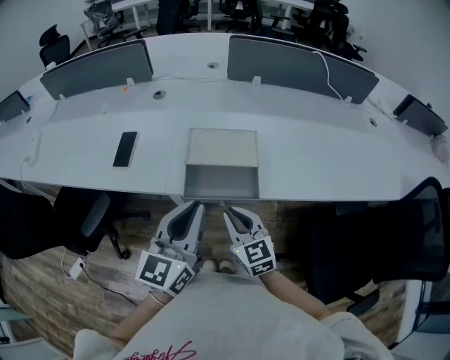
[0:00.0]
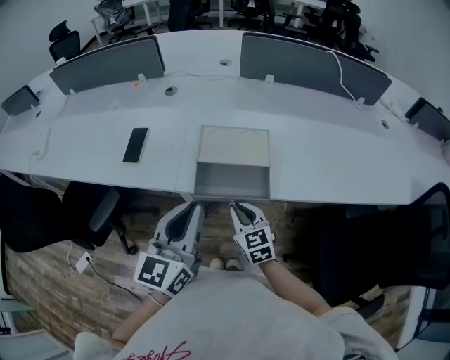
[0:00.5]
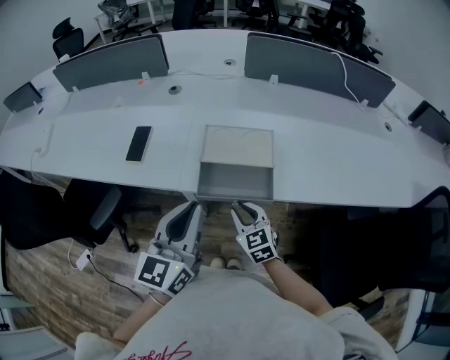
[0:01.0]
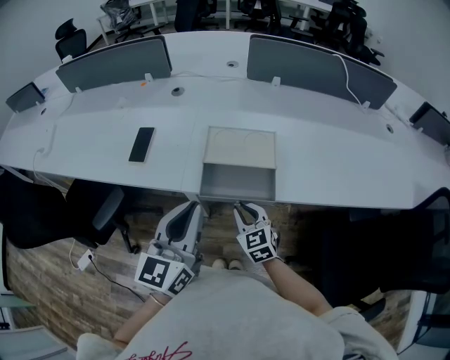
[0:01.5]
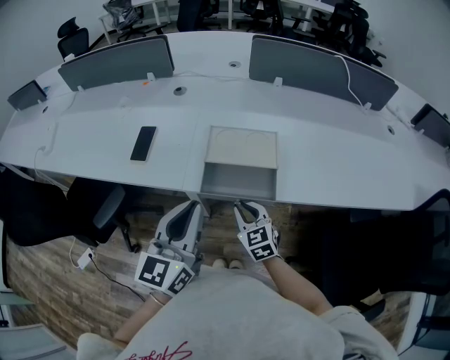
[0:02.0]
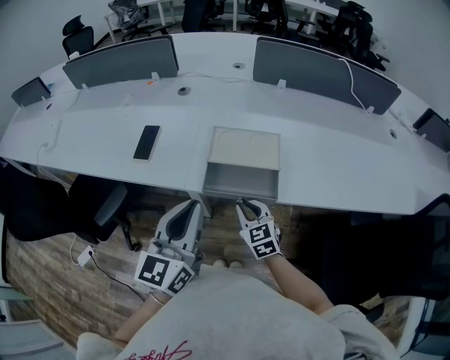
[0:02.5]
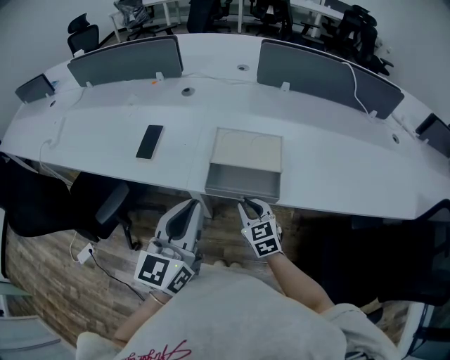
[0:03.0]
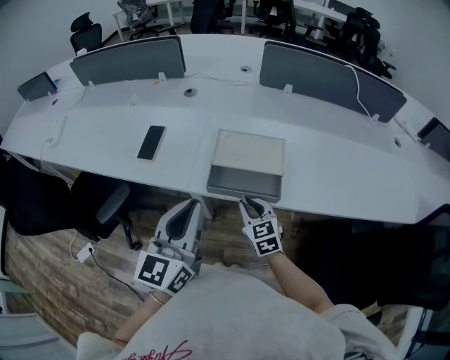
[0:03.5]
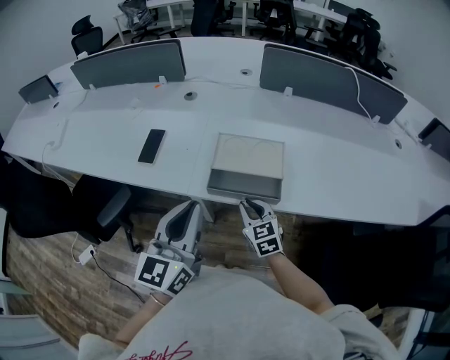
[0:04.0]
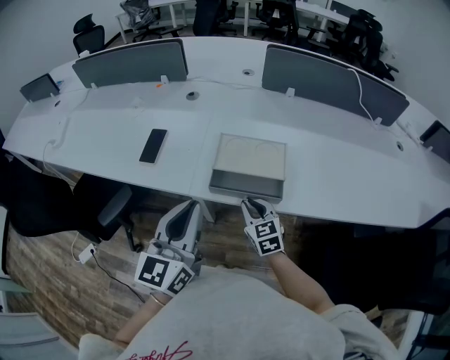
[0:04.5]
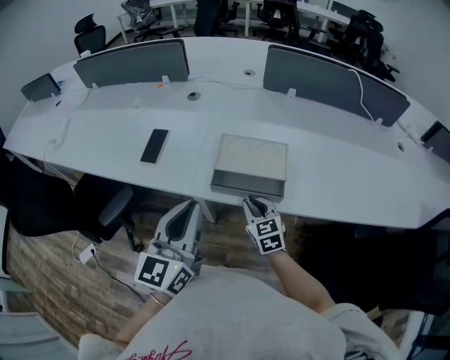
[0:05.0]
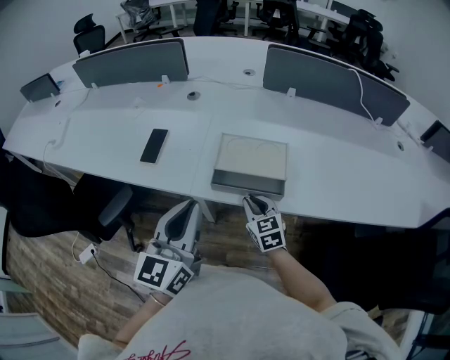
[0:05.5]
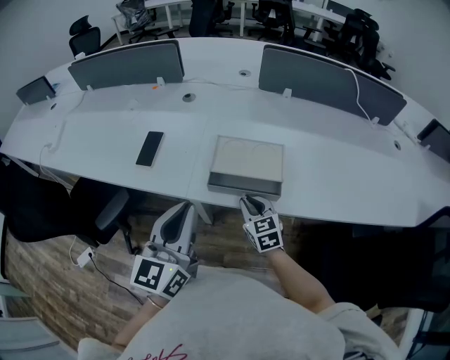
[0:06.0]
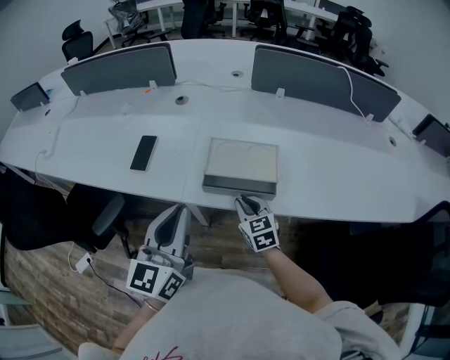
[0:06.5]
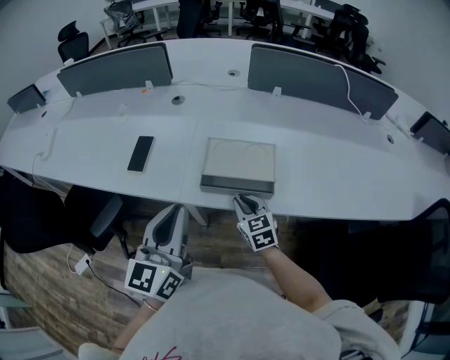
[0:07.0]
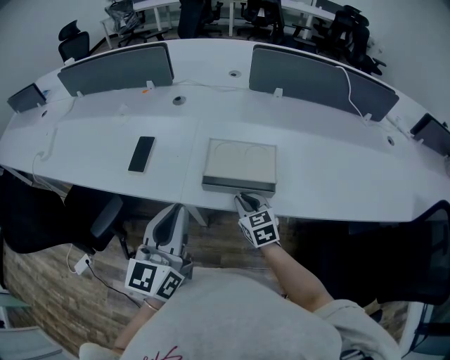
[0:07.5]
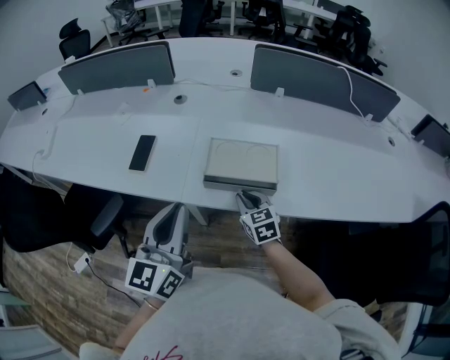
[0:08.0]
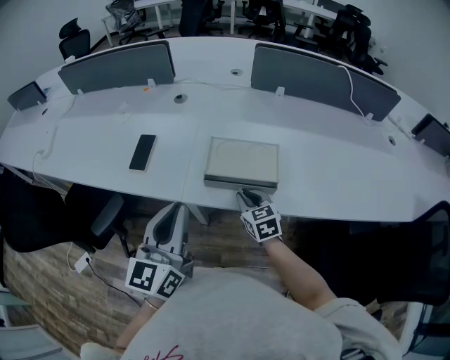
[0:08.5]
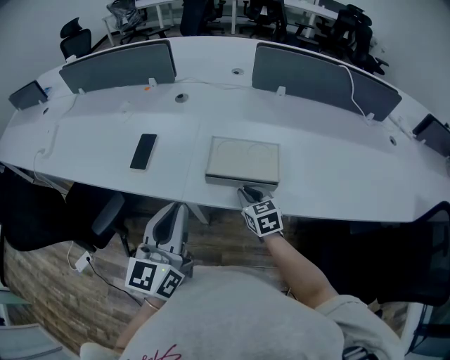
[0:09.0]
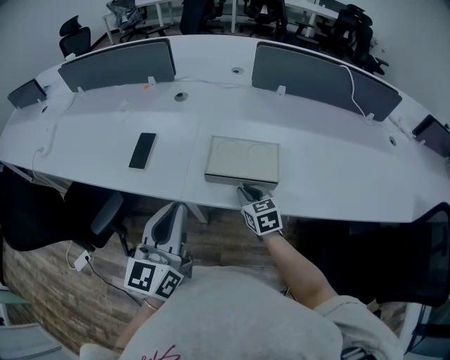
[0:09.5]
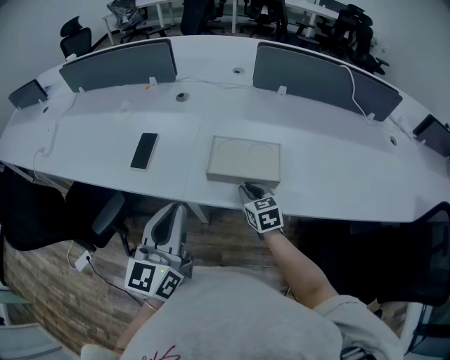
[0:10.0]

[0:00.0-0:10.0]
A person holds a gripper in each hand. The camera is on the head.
0:00.0 to 0:02.0: The right gripper travels downward by approximately 5 cm.
0:02.0 to 0:06.0: The grippers make only small movements.
0:06.0 to 0:10.0: The grippers move only a little.

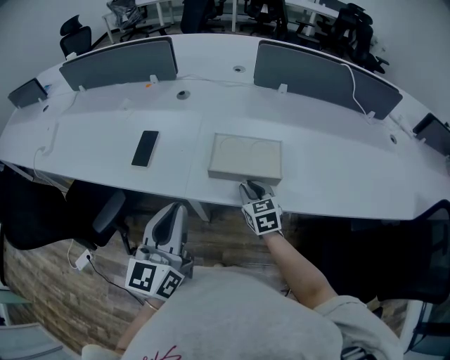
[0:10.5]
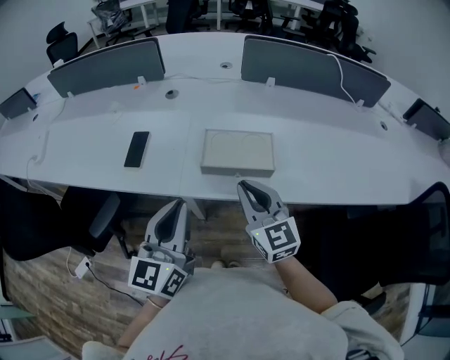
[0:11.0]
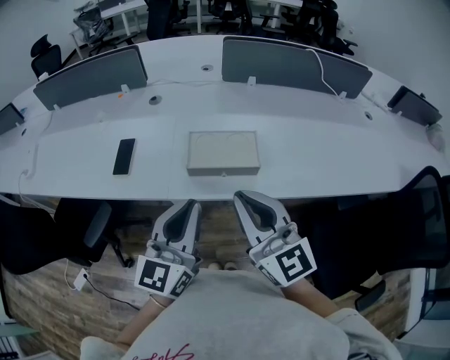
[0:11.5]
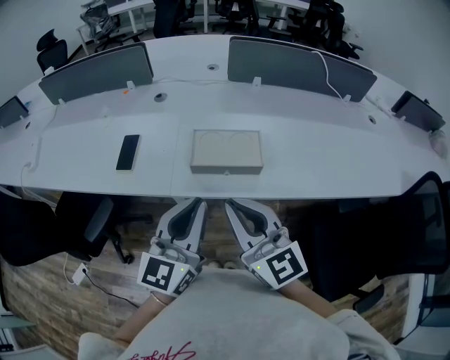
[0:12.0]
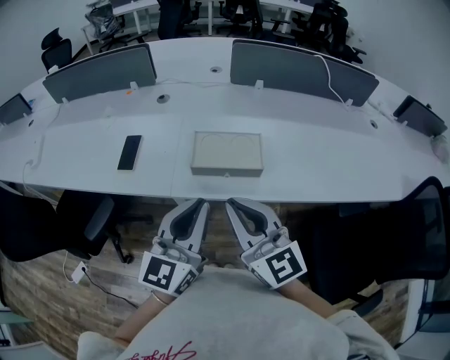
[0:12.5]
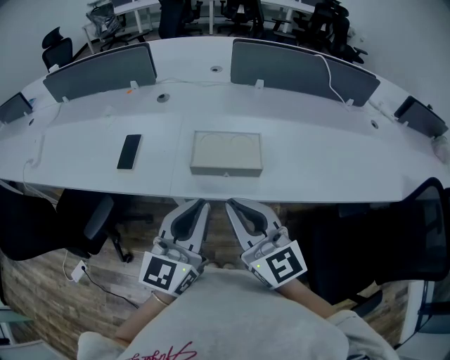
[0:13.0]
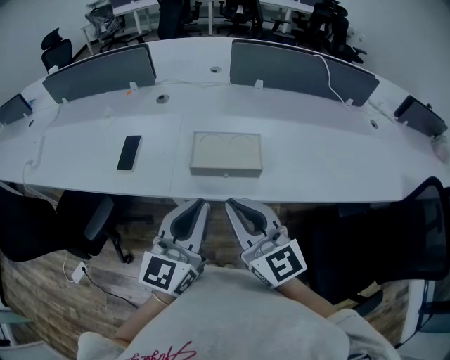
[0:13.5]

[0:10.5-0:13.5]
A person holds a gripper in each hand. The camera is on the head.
0:10.5 to 0:12.0: The right gripper heads upward and backward, covering some 25 cm, and angles its fingers upward, by some 30 degrees, while the left gripper shifts about 10 cm to the right.
0:12.0 to 0:13.5: The two grippers keep their place.

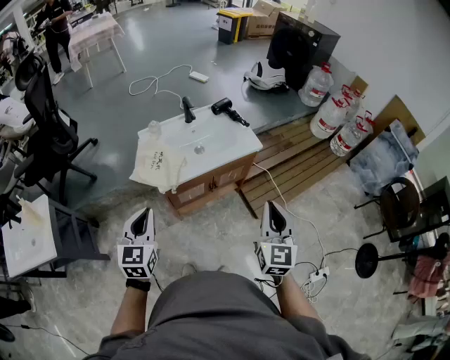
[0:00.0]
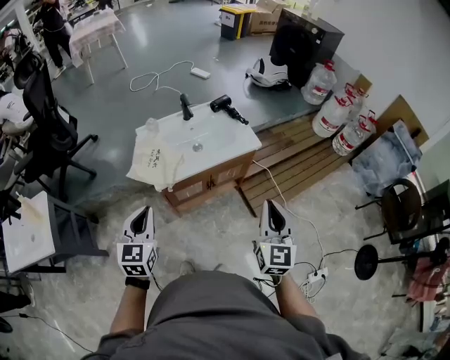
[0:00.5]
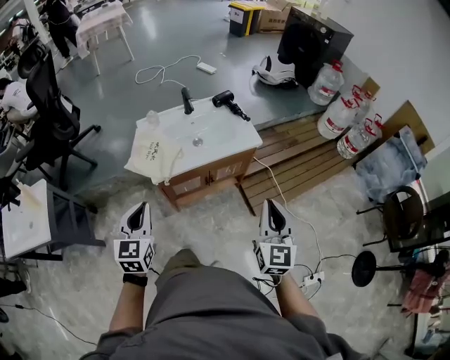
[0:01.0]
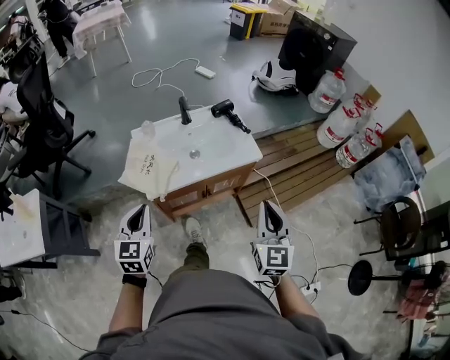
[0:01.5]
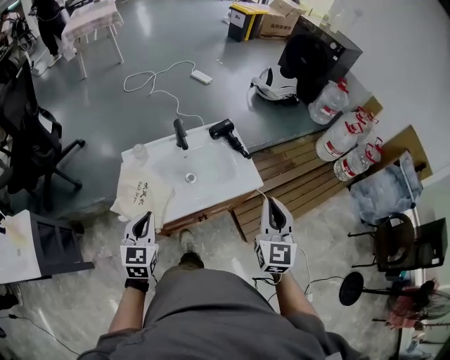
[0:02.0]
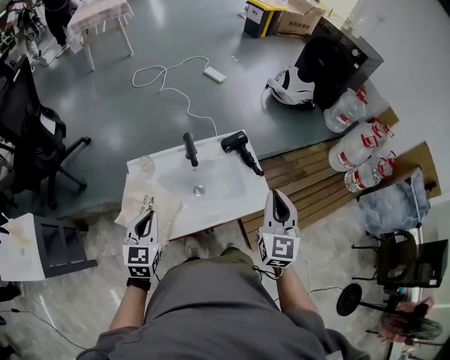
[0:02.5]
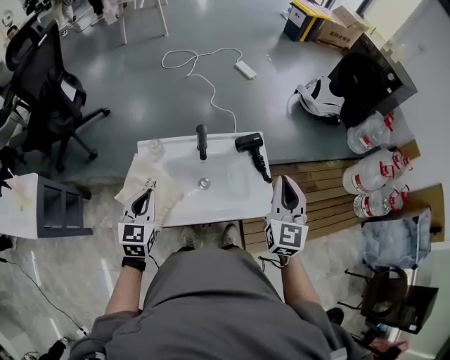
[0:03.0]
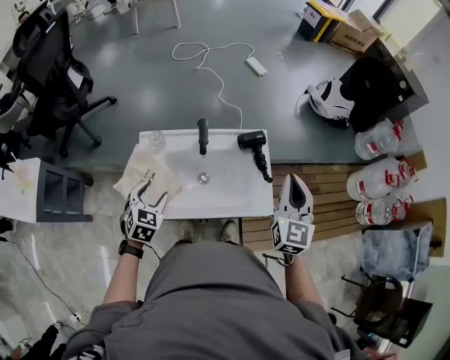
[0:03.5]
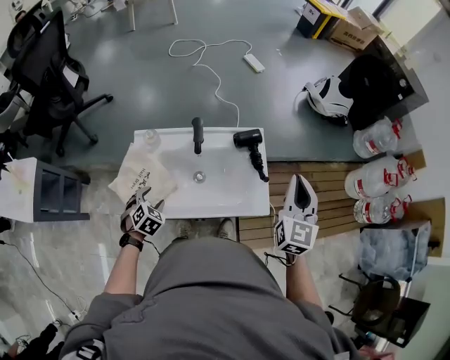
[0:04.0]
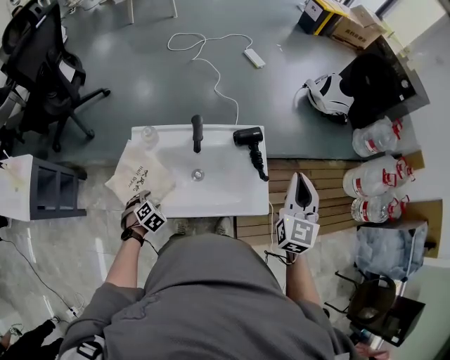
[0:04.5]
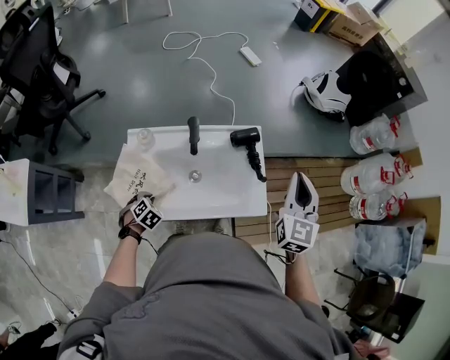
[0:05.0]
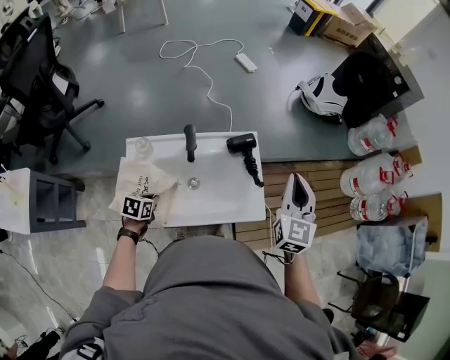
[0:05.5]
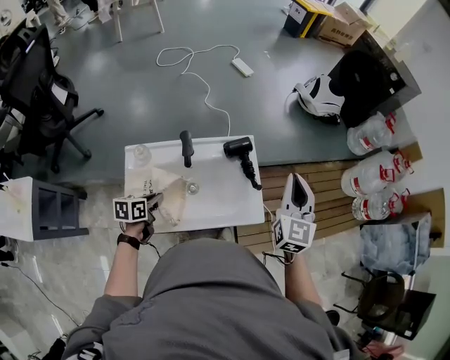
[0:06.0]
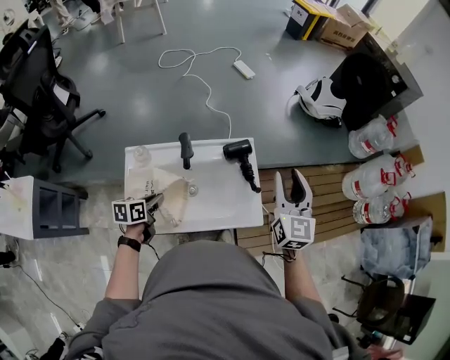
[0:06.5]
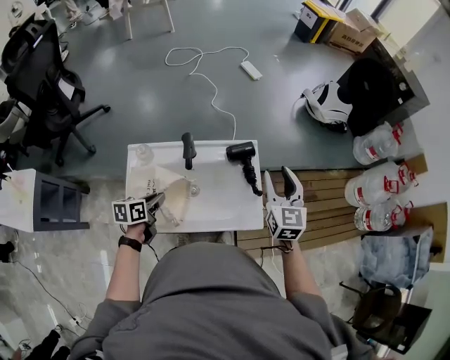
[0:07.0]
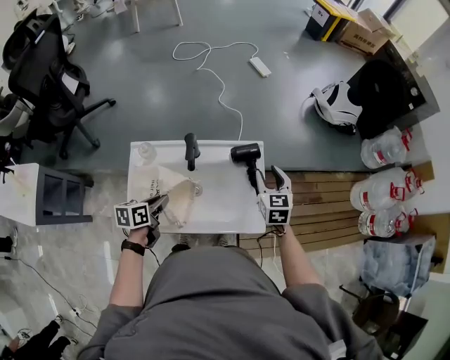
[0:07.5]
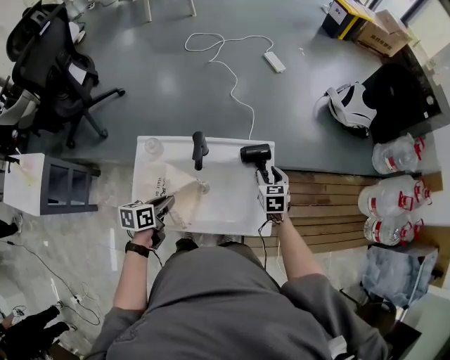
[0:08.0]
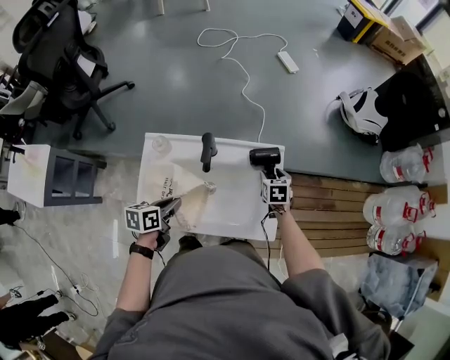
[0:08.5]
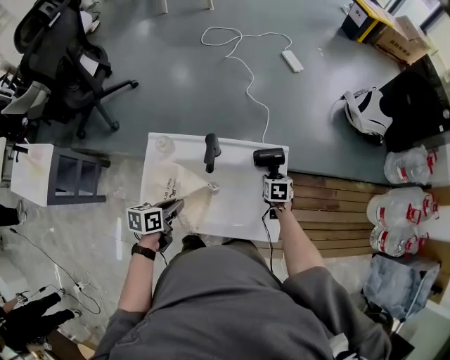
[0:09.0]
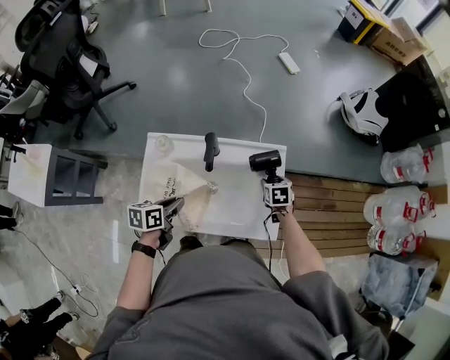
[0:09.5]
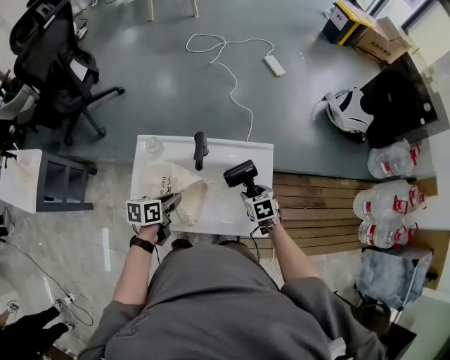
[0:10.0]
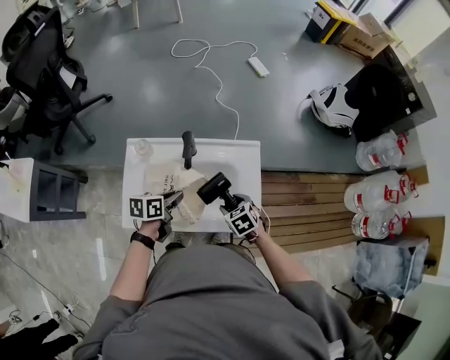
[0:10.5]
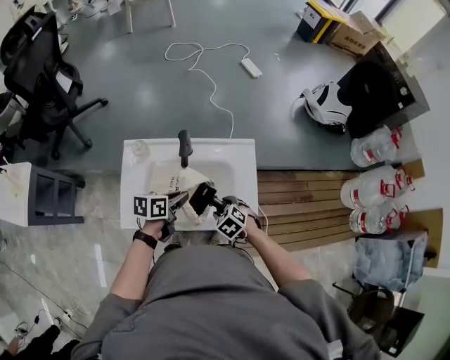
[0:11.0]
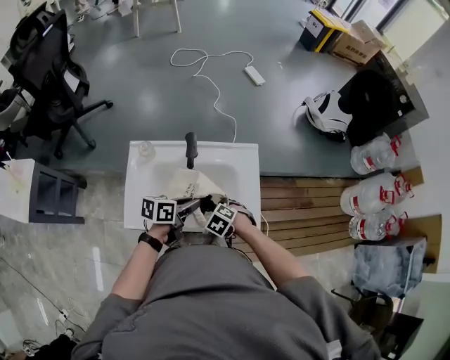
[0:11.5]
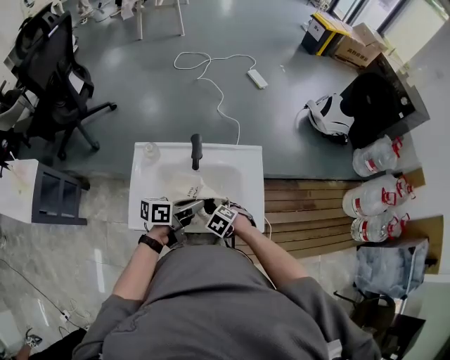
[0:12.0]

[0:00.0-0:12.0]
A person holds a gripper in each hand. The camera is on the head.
0:00.0 to 0:02.0: The grippers both shift forward by some 25 cm.
0:02.0 to 0:04.0: The left gripper goes roughly 20 cm downward and forward, tips its fingers downward by some 40 degrees, and opens up. Meanwhile the right gripper shifts some 25 cm forward.
0:04.0 to 0:06.0: The left gripper reaches some 10 cm downward, then returns, rolls counterclockwise, seen from behind, by roughly 50 degrees, and closes up.
0:06.0 to 0:08.0: The right gripper is displaced downward by approximately 25 cm, tilts its fingers about 40 degrees downward, and opens.
0:08.0 to 0:10.0: The right gripper travels backward by about 10 cm, and turns by approximately 20 degrees.
0:10.0 to 0:12.0: The left gripper moves about 10 cm, and turns by approximately 30 degrees. Meanwhile the right gripper ends up roughly 15 cm from where it was, and rotates roughly 40 degrees.

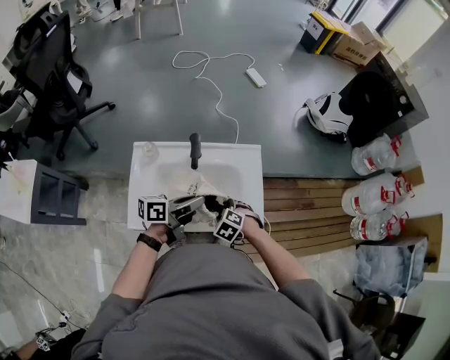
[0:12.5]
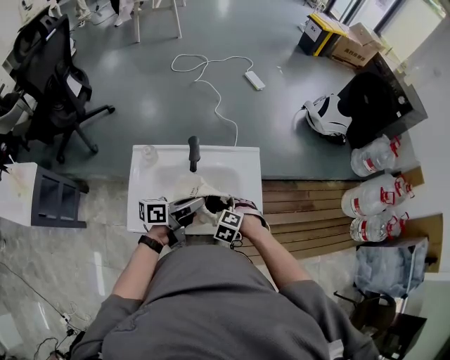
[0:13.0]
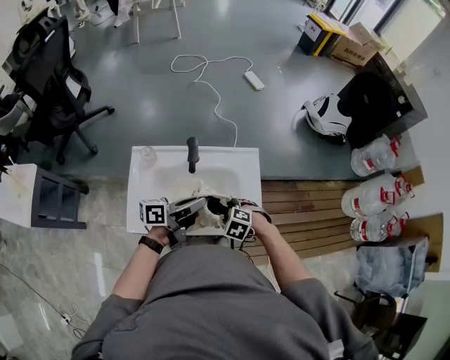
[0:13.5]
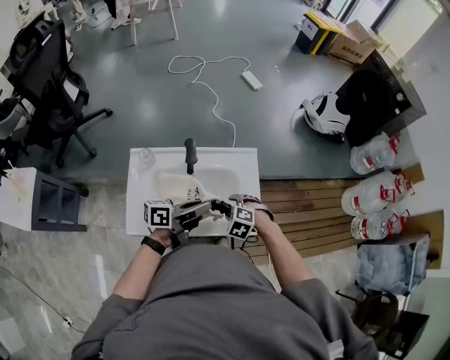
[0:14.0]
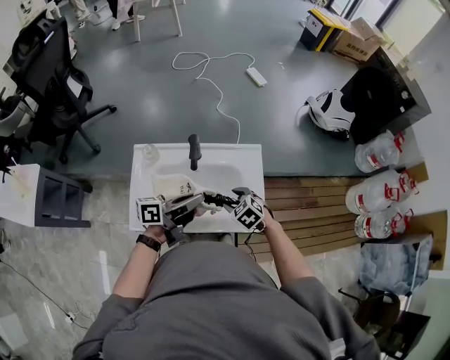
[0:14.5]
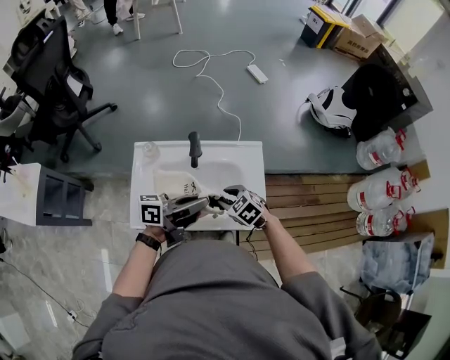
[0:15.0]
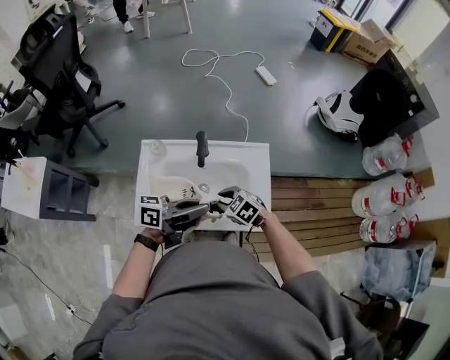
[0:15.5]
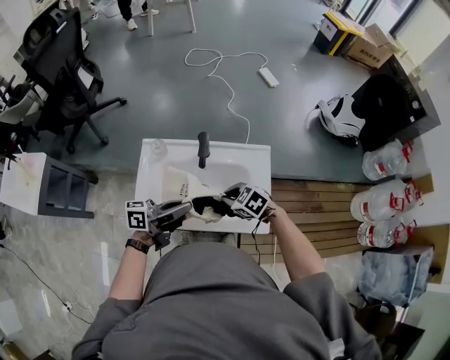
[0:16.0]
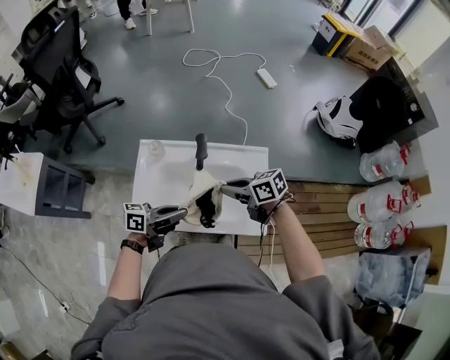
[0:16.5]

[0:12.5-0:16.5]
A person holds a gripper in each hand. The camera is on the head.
0:12.5 to 0:14.5: The right gripper changes place by about 5 cm.
0:14.5 to 0:16.5: The right gripper shifts about 10 cm upward, angles its fingers upward, by some 30 degrees, and closes its fingers. Meanwhile the left gripper changes place by some 10 cm.
